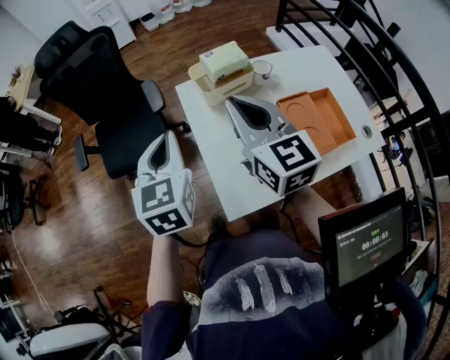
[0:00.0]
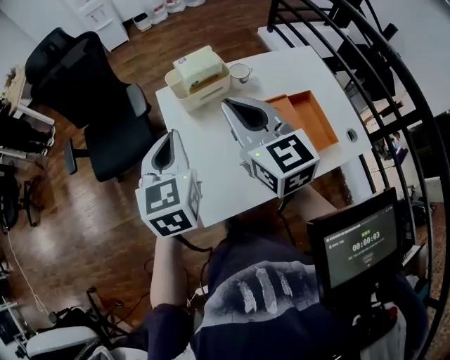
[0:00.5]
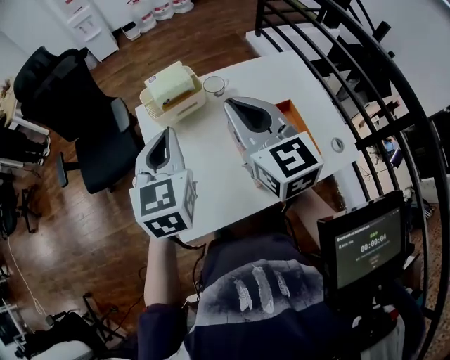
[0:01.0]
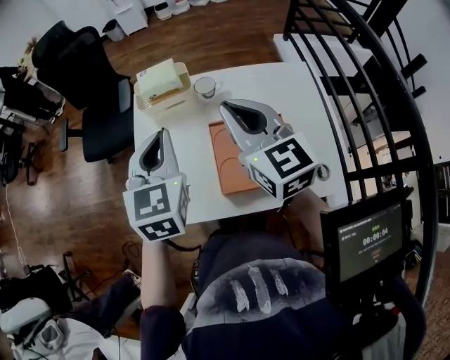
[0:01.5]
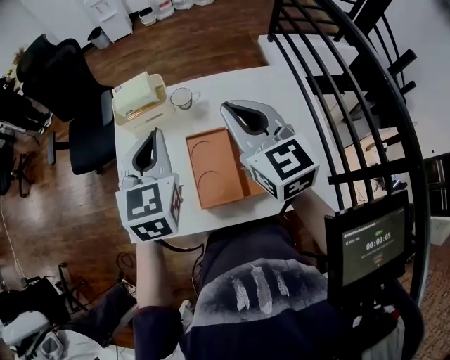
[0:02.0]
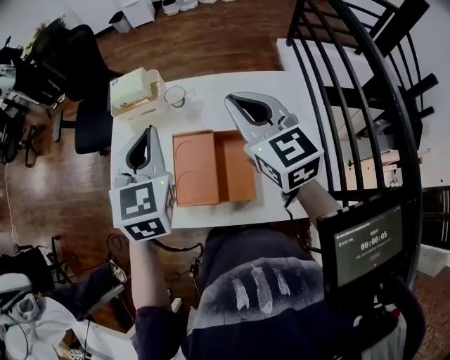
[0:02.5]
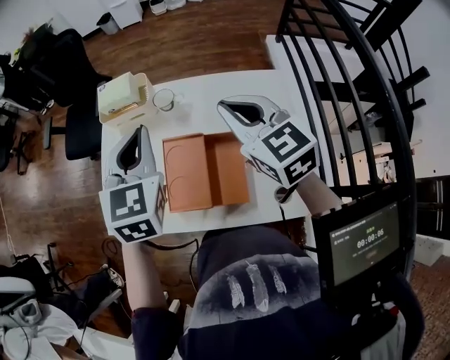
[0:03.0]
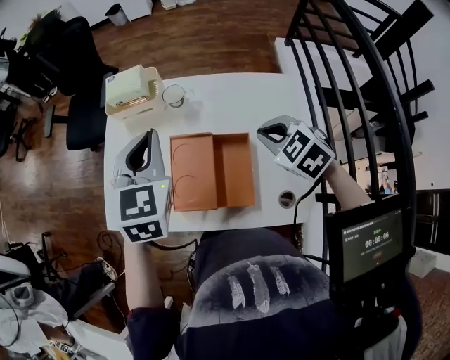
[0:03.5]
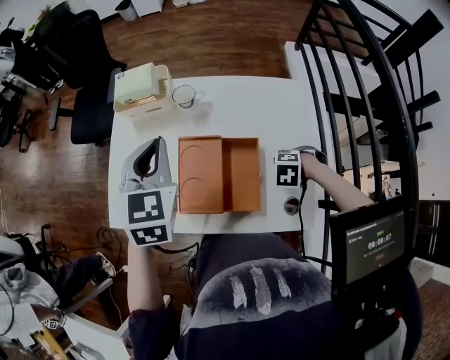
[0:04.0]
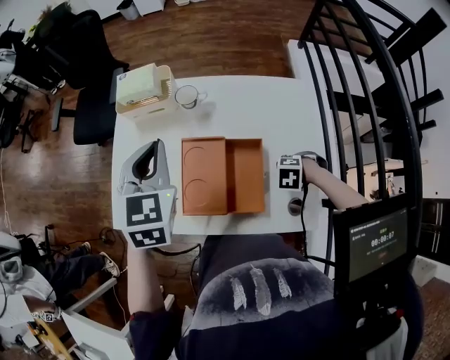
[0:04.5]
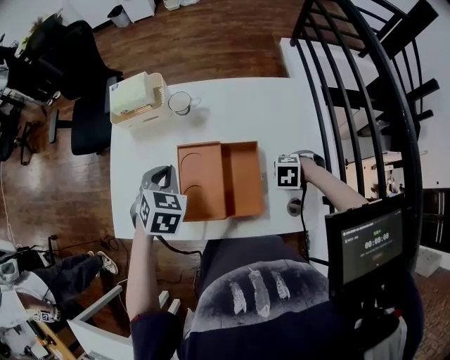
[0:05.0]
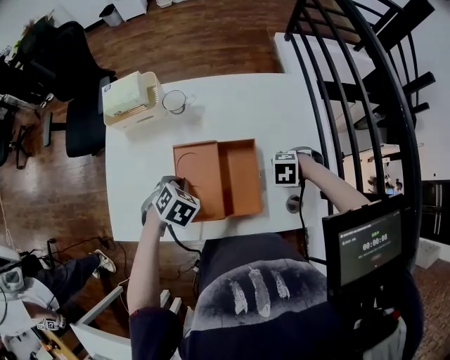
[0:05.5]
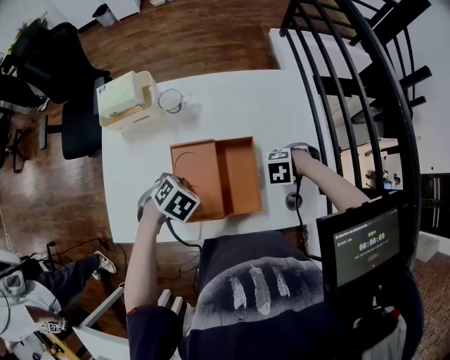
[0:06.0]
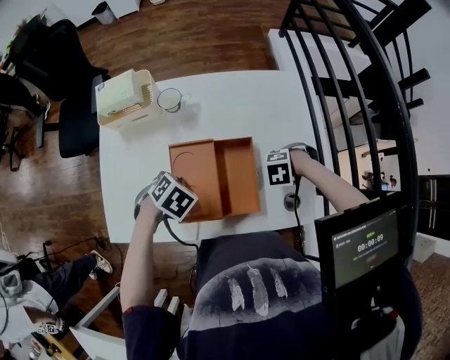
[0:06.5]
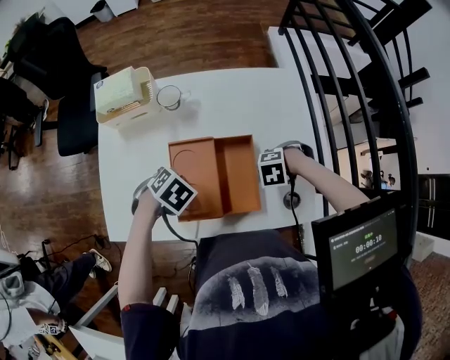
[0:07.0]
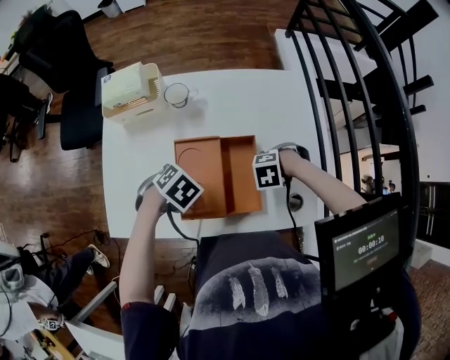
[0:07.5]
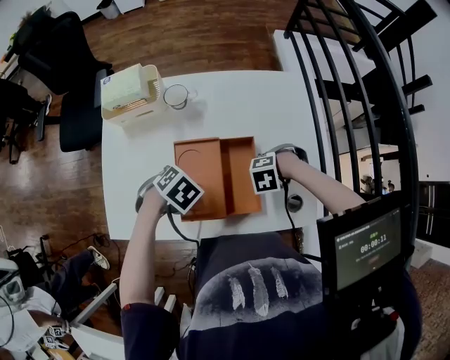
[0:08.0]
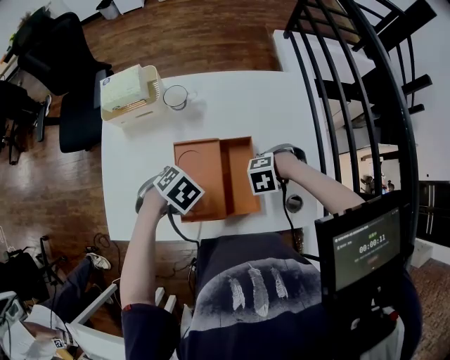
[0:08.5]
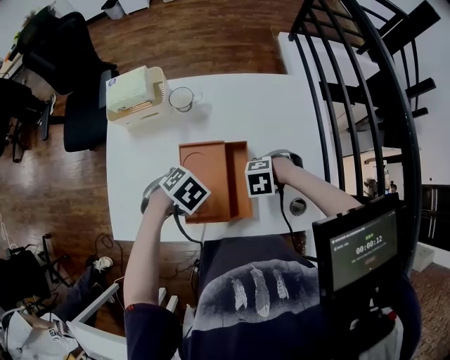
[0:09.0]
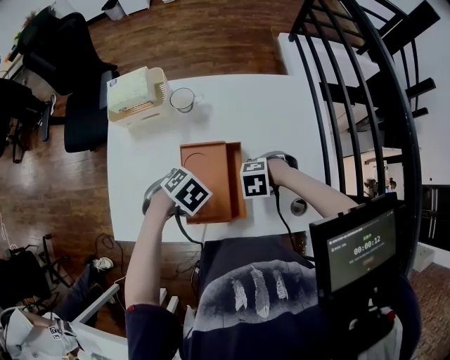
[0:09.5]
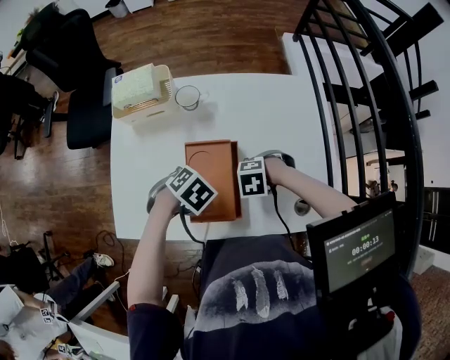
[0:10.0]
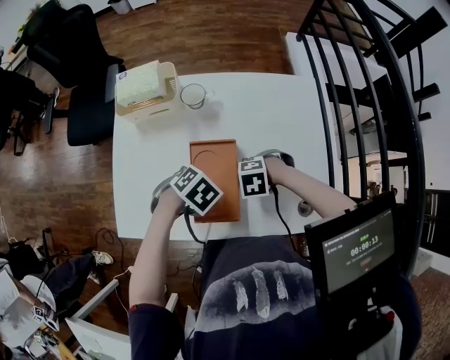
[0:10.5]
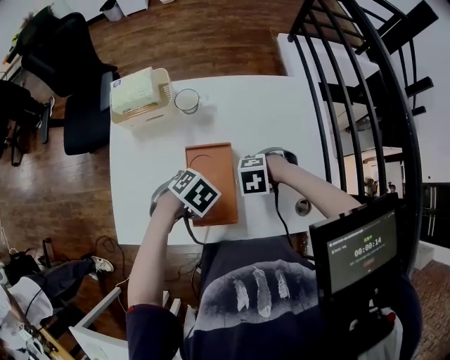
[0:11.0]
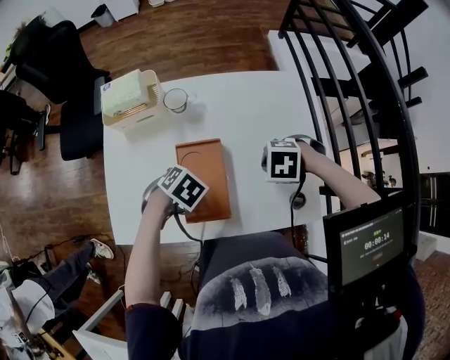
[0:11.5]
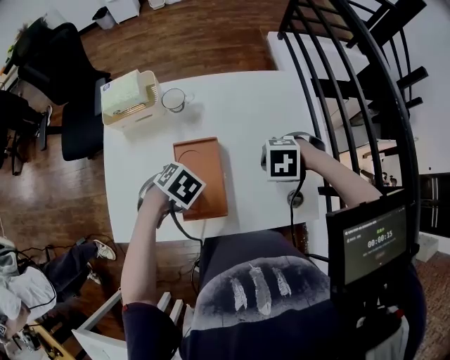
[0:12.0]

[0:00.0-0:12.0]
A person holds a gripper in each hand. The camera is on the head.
0:00.0 to 0:02.0: Both grippers move to the right, about 35 cm.
0:02.0 to 0:04.0: The right gripper heads downward, covering about 30 cm, and points its fingers roughly 80 degrees further downward.
0:04.0 to 0:06.0: The left gripper moves downward, about 25 cm, and tips its fingers downward by roughly 50 degrees.
0:06.0 to 0:08.0: The grippers stay close to where they were, moving slightly.
0:08.0 to 0:10.0: The right gripper shifts by some 10 cm.
0:10.0 to 0:12.0: The right gripper moves upward, roughly 10 cm.

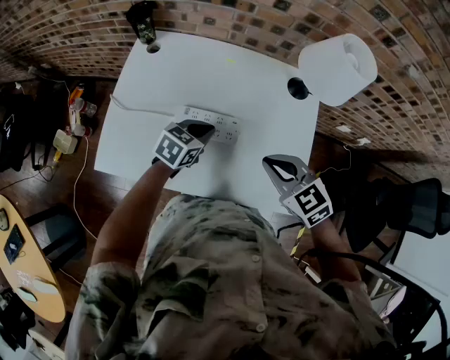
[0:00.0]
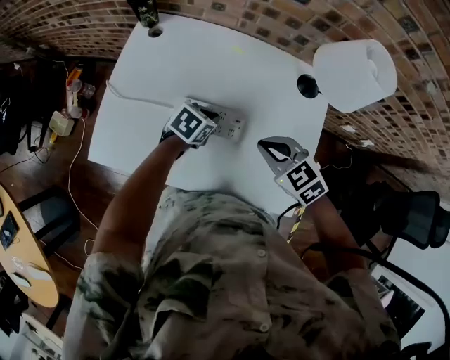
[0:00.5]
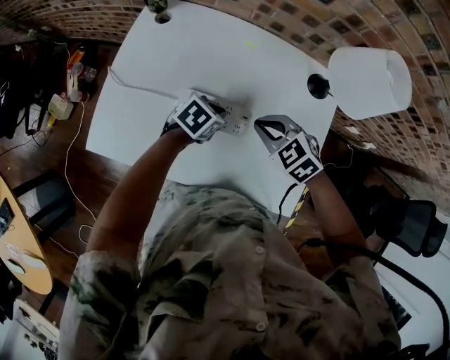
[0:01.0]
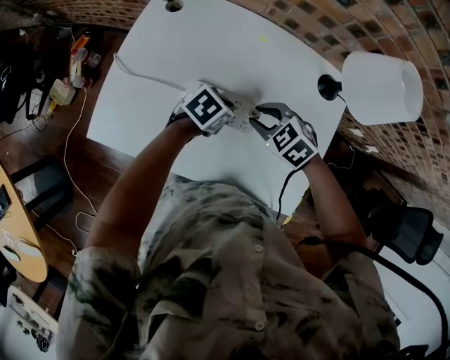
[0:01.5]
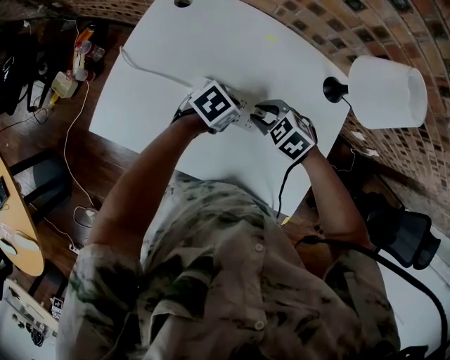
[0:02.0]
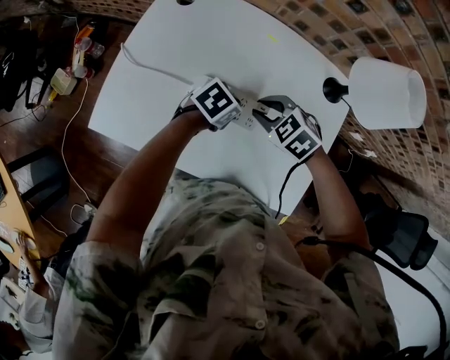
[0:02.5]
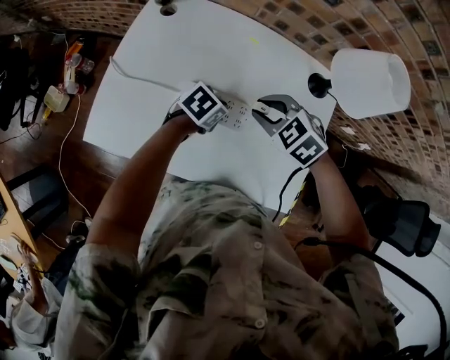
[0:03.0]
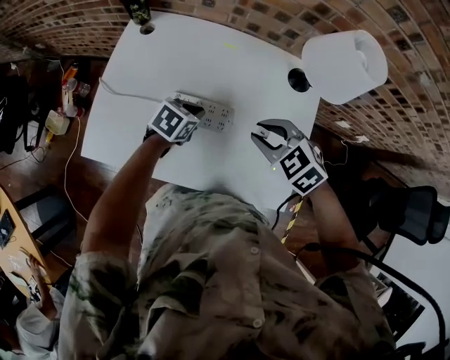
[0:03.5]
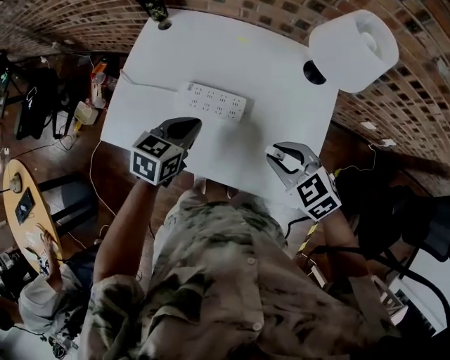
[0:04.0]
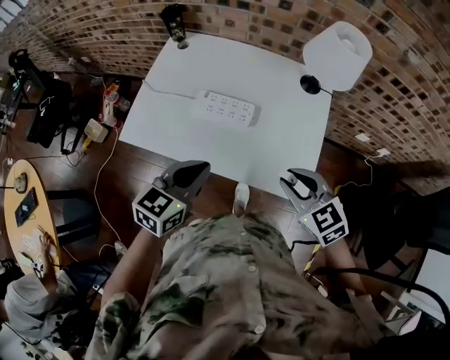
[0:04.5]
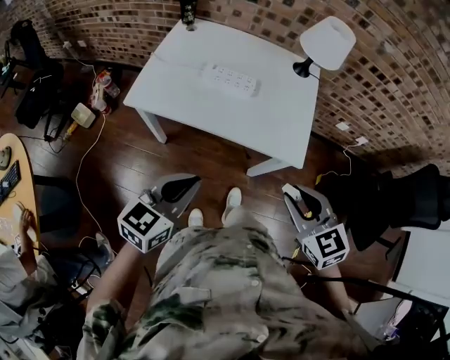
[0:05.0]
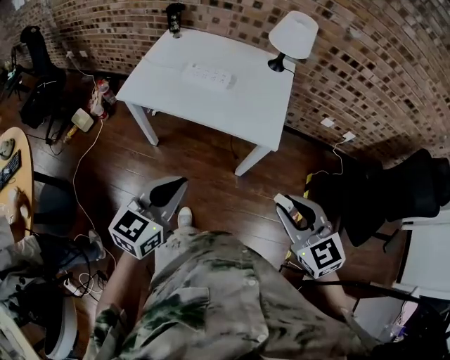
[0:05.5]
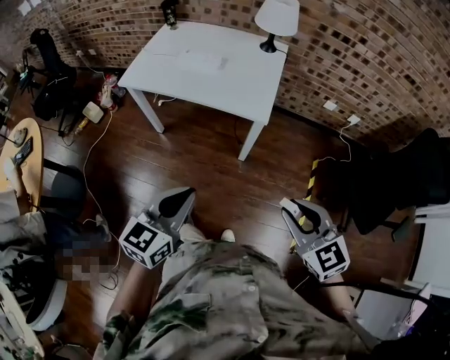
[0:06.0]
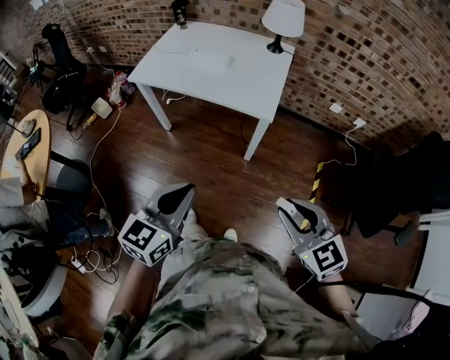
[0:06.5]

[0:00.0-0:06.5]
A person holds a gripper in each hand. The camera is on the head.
0:00.0 to 0:02.0: The left gripper is displaced downward by about 5 cm. The right gripper is displaced downward by about 15 cm, swivels roughly 30 degrees, and opens up.
0:02.0 to 0:04.5: The right gripper ends up about 30 cm from where it was, and rotates roughly 30 degrees. Meanwhile the left gripper changes place by roughly 30 cm, and swivels roughly 40 degrees.
0:04.5 to 0:06.5: Both grippers are carried backward, about 40 cm.

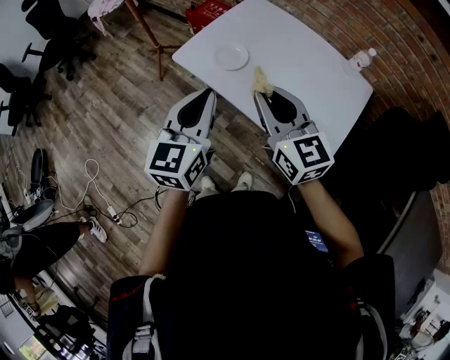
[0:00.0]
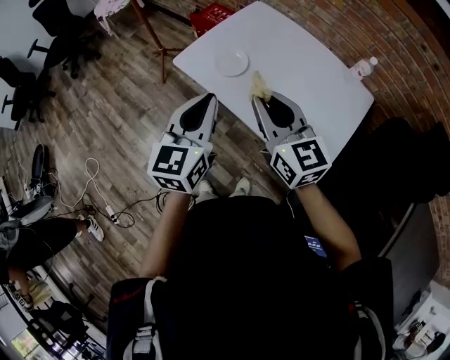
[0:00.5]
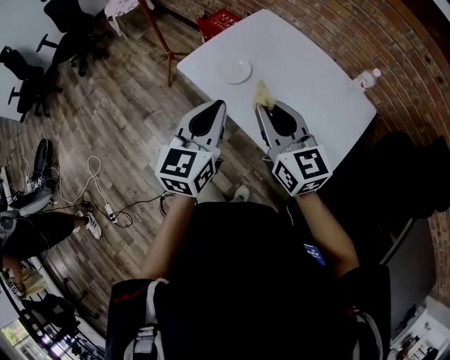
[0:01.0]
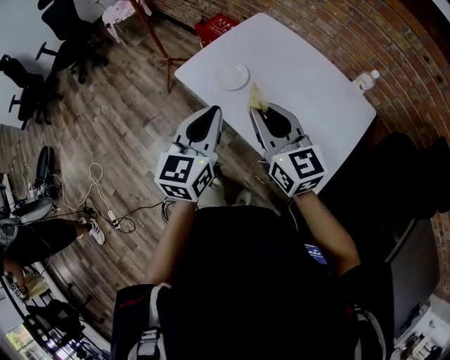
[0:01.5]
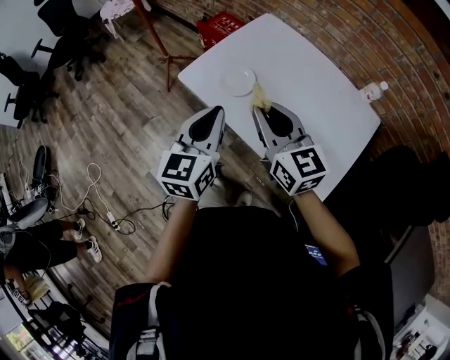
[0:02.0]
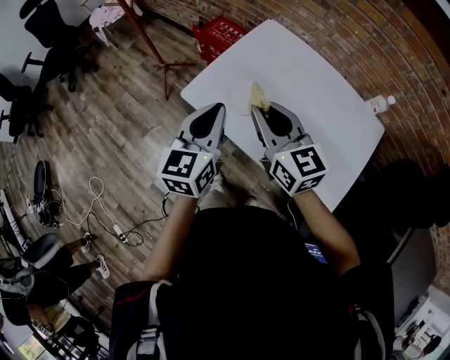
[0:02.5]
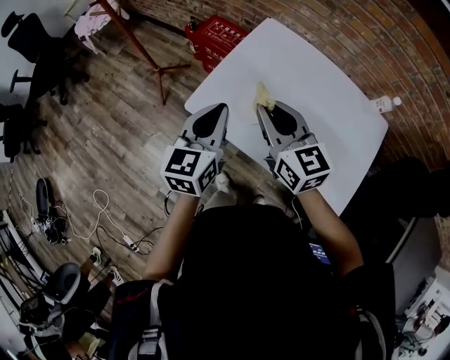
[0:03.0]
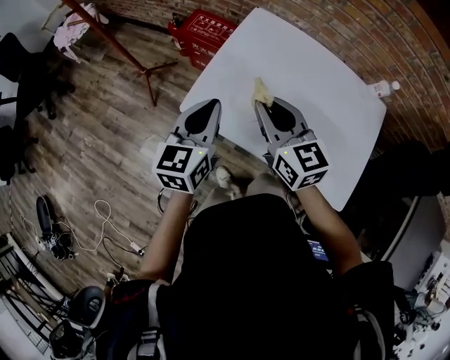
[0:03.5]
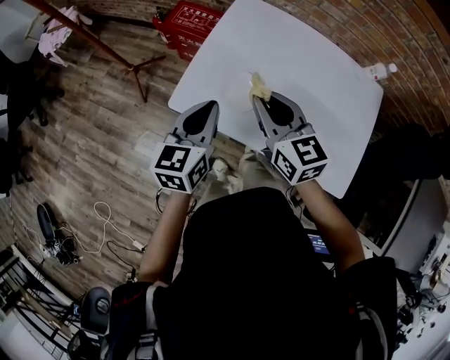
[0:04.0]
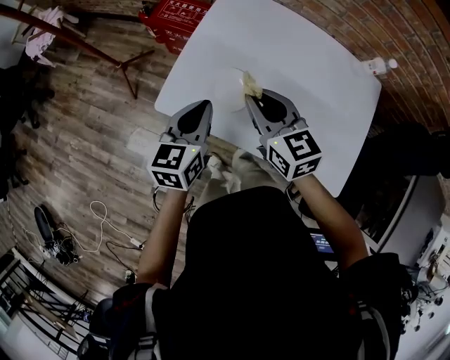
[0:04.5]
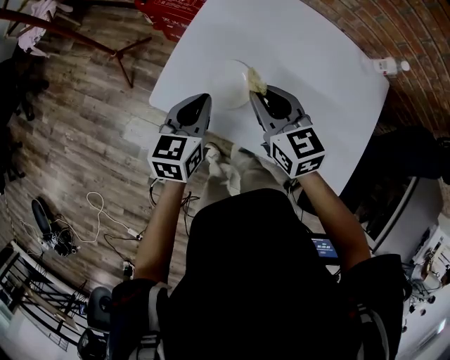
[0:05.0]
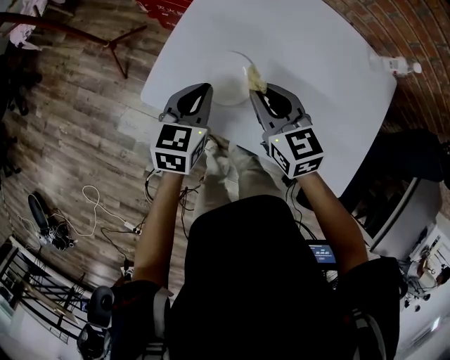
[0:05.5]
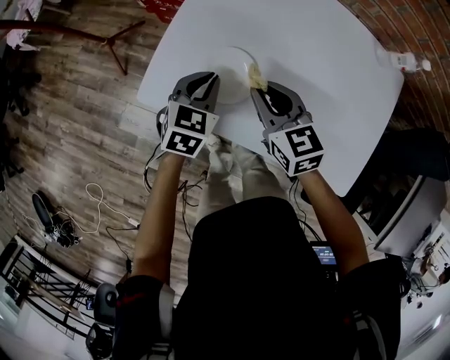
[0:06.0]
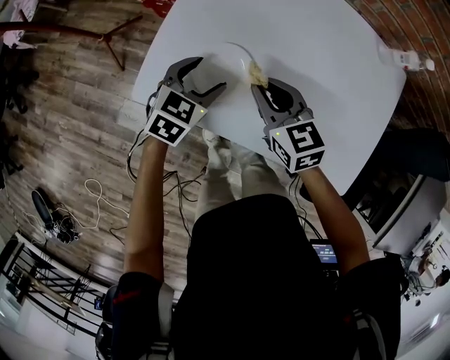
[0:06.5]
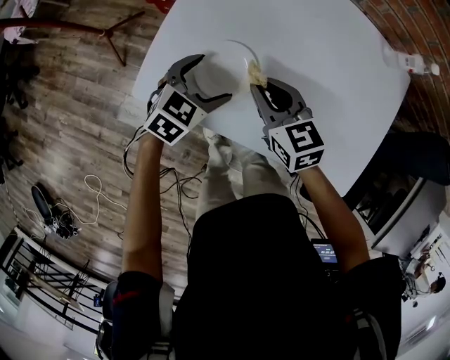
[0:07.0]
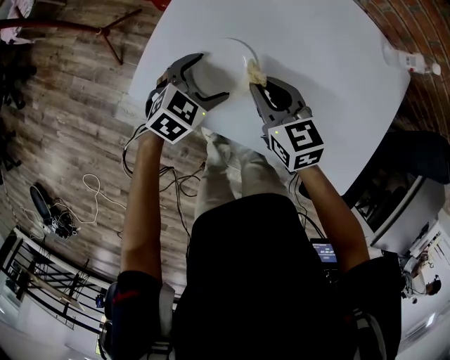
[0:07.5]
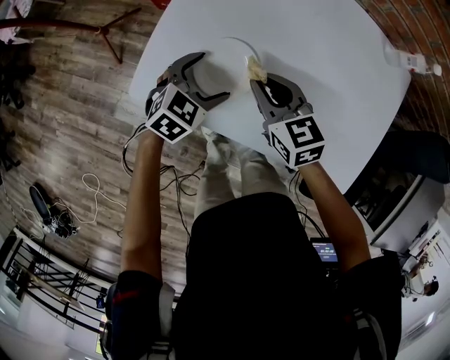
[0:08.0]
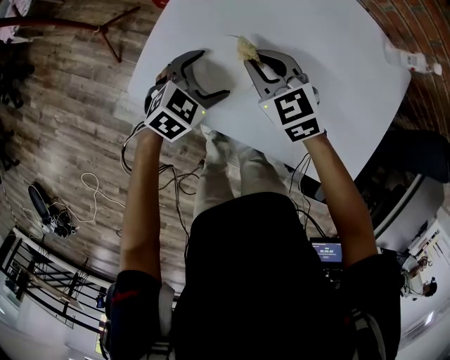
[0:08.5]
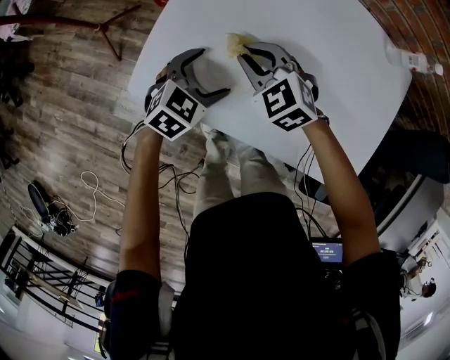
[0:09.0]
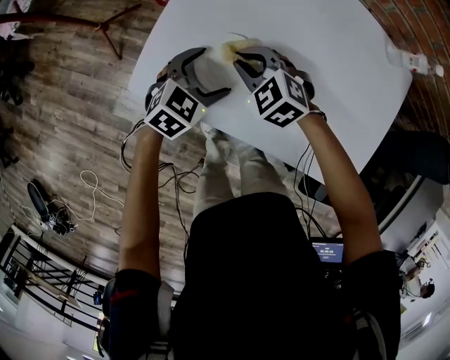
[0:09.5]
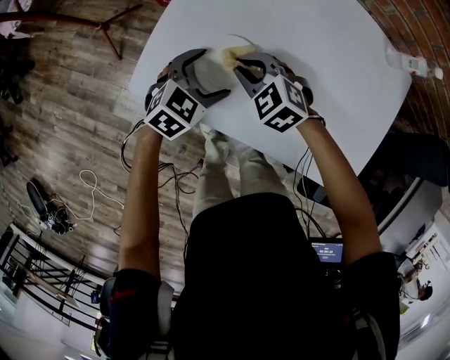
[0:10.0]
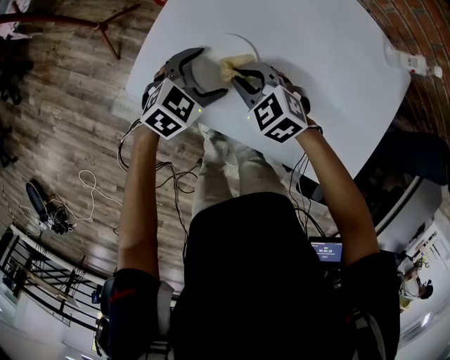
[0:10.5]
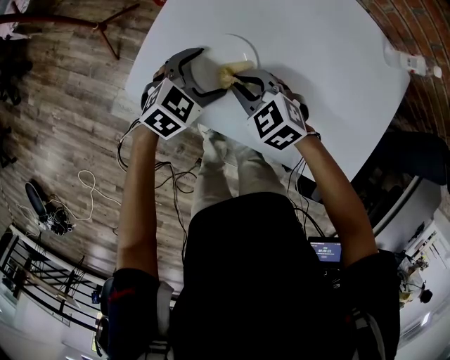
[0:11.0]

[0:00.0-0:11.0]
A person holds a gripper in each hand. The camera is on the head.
0:00.0 to 0:02.0: Both grippers travel together forward, about 5 cm.
0:02.0 to 0:03.5: Both grippers move forward and to the left, roughly 20 cm.
0:03.5 to 0:05.5: The grippers both shift downward by approximately 15 cm.
0:05.5 to 0:07.5: The right gripper heads downward, covering some 5 cm; the left gripper goes some 10 cm downward, swivels roughly 30 degrees, and opens up.
0:07.5 to 0:09.0: The right gripper changes place by approximately 5 cm, and swivels roughly 40 degrees.
0:09.0 to 0:11.0: The right gripper is displaced backward by roughly 5 cm.
